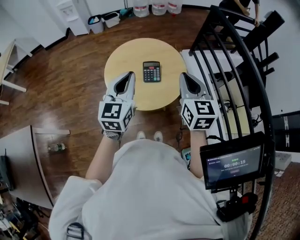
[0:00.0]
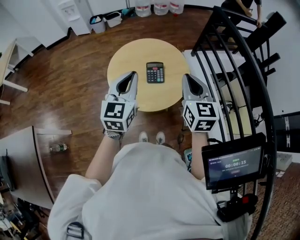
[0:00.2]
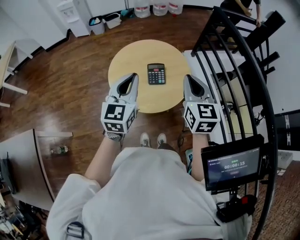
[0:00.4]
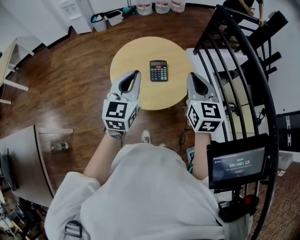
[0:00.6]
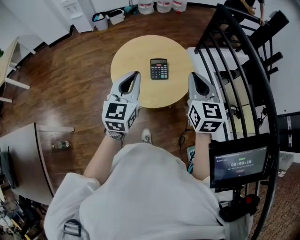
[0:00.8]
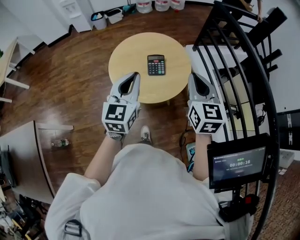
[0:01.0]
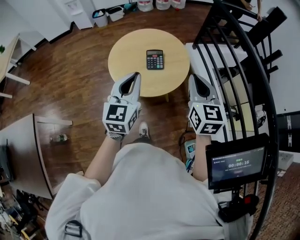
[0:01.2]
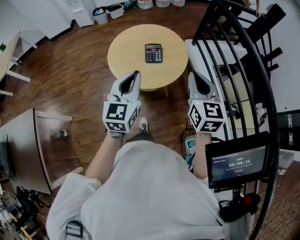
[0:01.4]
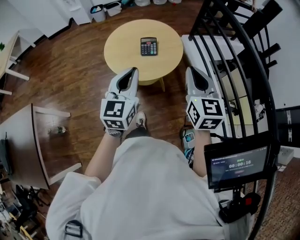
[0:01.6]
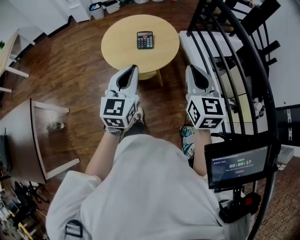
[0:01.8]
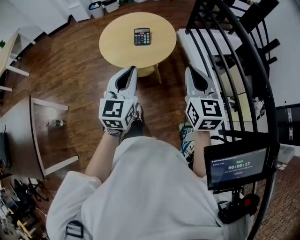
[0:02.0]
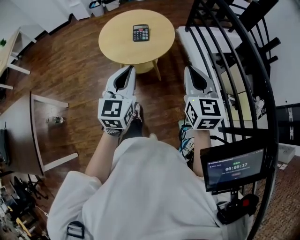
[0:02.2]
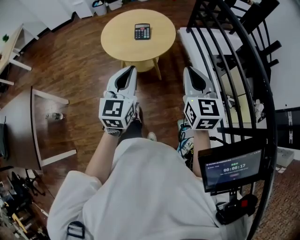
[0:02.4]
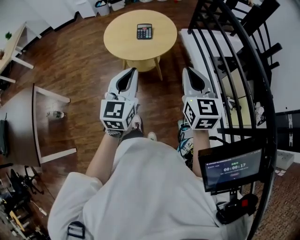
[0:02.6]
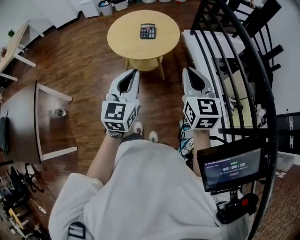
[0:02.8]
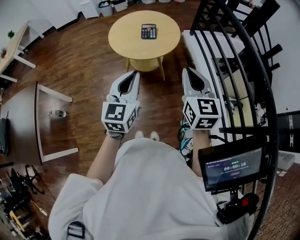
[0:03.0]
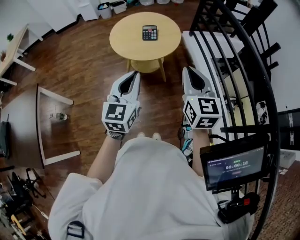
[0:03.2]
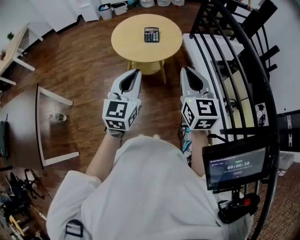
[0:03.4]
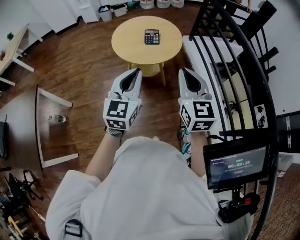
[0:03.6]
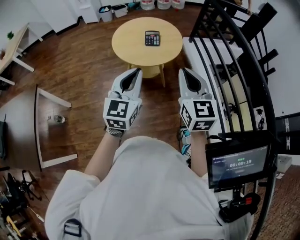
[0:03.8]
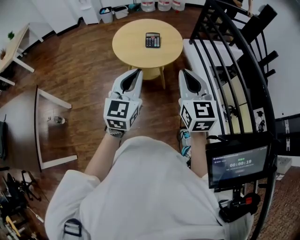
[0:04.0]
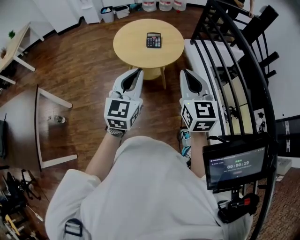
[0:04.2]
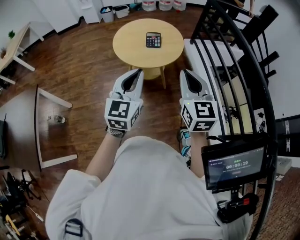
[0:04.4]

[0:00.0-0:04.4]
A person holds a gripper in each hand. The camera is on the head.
0:00.0 to 0:01.4: The grippers both shift backward and to the right by some 20 cm.
0:01.4 to 0:03.0: The left gripper shifts about 5 cm backward.
0:03.0 to 0:04.4: There are only small adjustments of the grippers.

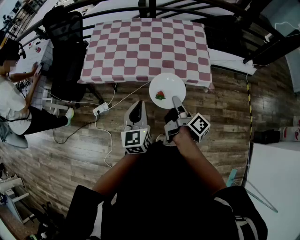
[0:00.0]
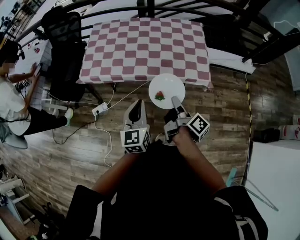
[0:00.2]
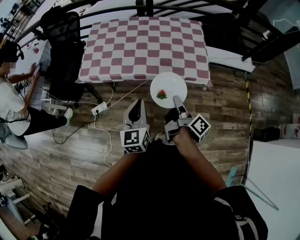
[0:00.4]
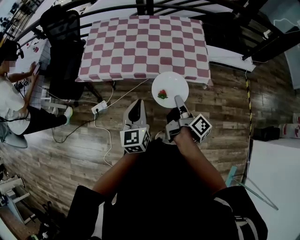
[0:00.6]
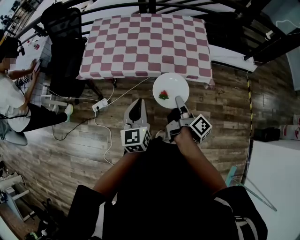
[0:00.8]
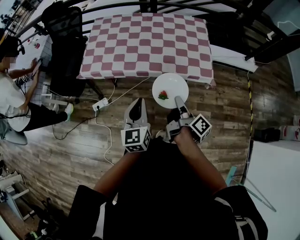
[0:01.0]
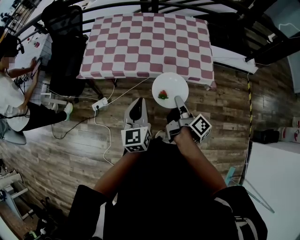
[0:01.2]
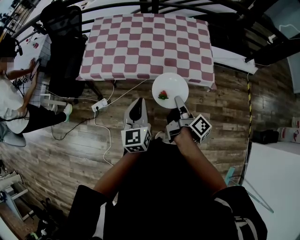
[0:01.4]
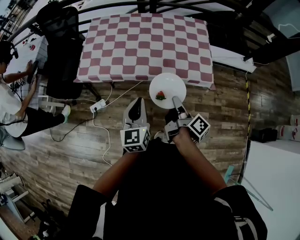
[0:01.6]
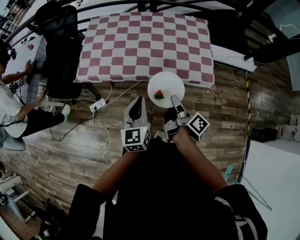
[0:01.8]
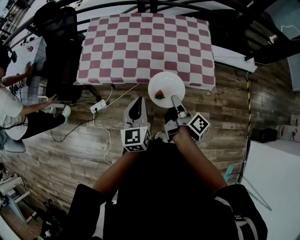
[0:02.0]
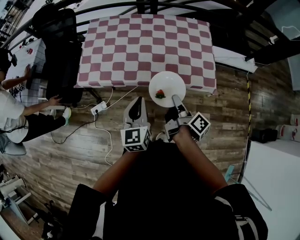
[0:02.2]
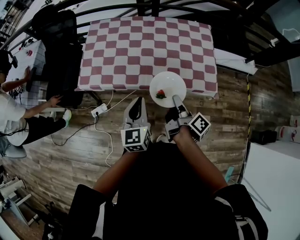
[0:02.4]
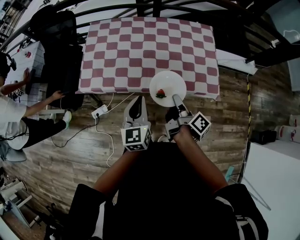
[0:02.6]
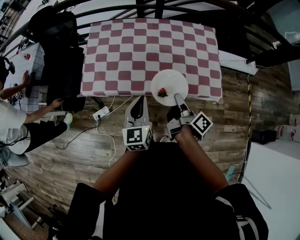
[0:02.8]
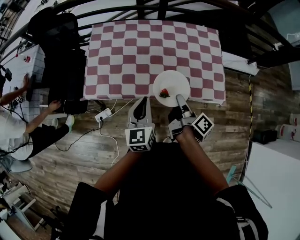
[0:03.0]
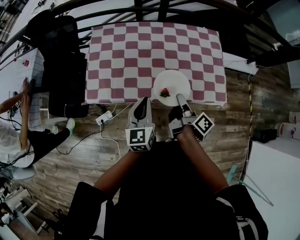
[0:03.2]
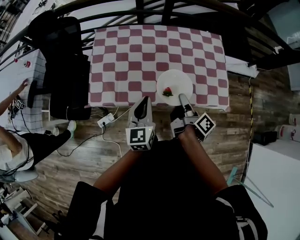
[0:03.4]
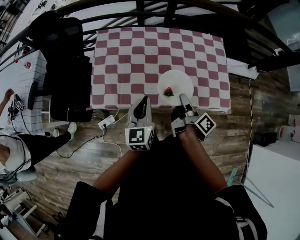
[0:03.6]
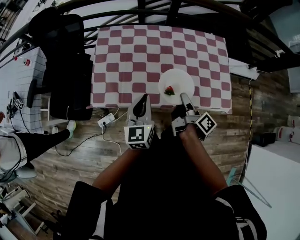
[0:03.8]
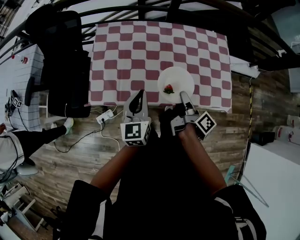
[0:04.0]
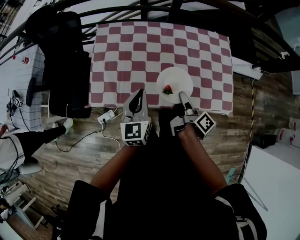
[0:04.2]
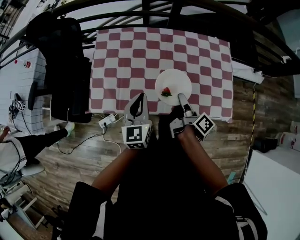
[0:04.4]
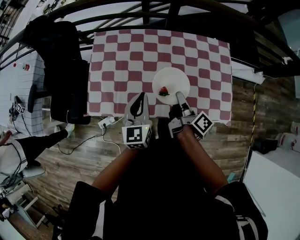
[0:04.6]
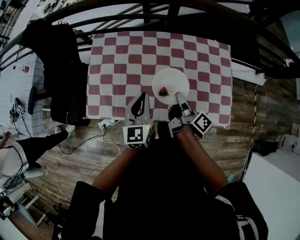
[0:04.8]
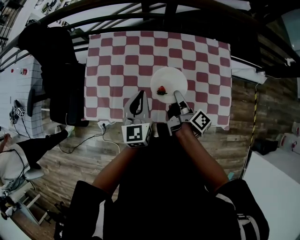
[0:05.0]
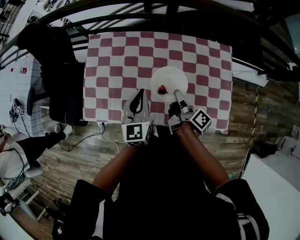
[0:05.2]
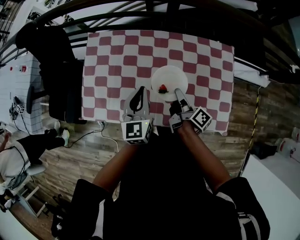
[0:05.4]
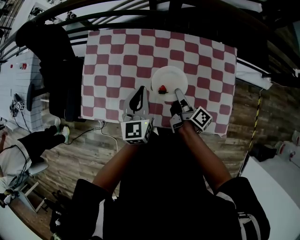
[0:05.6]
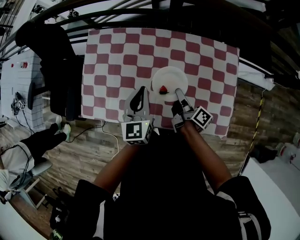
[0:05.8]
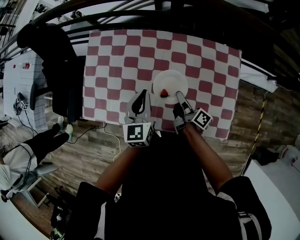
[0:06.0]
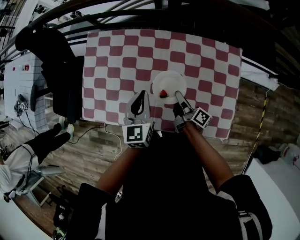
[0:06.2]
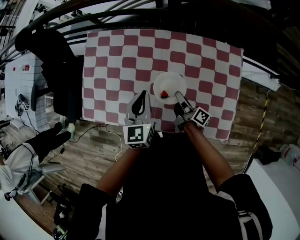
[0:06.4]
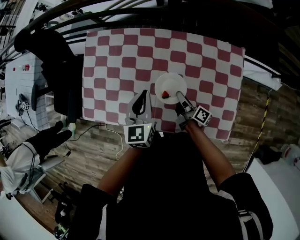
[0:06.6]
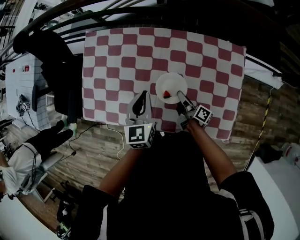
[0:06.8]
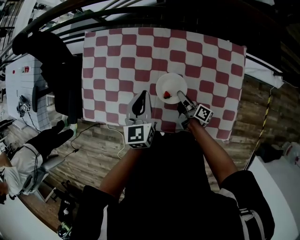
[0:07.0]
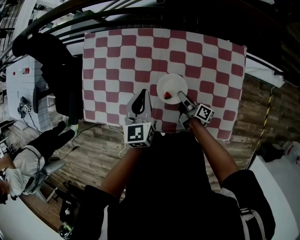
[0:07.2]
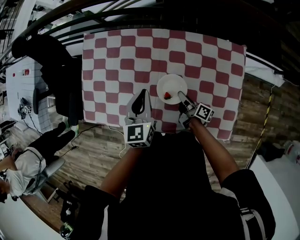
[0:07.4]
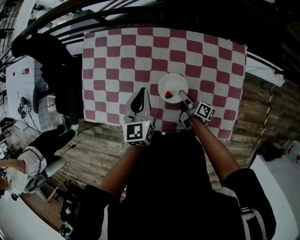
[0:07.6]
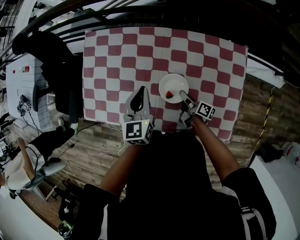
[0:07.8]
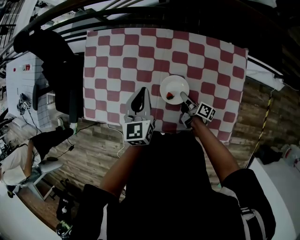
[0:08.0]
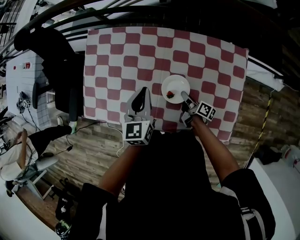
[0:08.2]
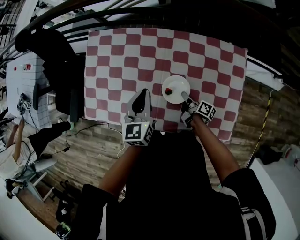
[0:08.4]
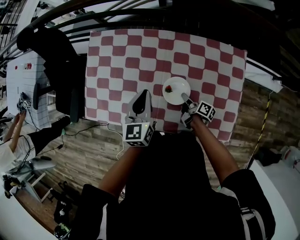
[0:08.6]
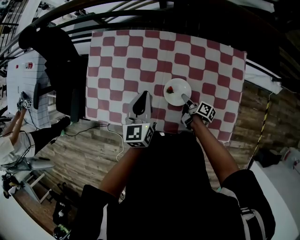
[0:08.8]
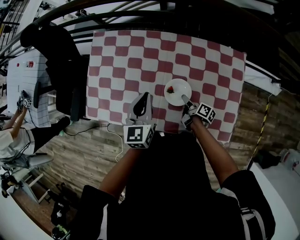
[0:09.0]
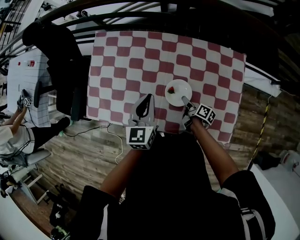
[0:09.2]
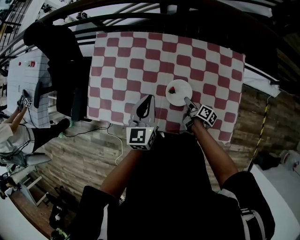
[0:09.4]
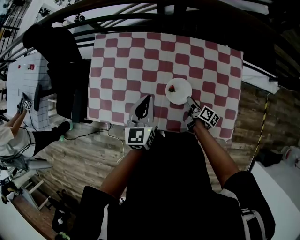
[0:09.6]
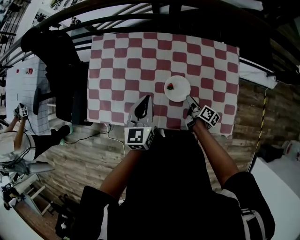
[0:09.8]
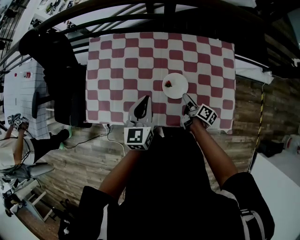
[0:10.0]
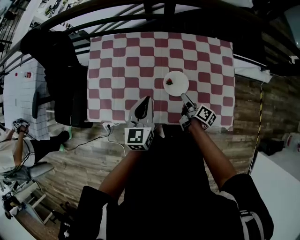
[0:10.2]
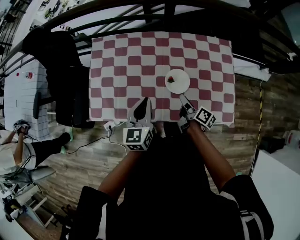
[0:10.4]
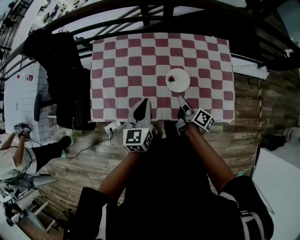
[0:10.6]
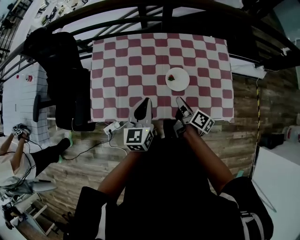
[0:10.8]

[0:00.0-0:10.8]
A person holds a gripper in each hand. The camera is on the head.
0:01.6 to 0:03.0: The left gripper moves roughly 20 cm.
0:03.0 to 0:04.6: The left gripper ends up roughly 15 cm from where it was.
0:04.6 to 0:06.2: The left gripper changes place by about 15 cm.
0:07.8 to 0:09.2: The left gripper ends up about 5 cm from where it was.
0:09.2 to 0:10.8: The left gripper moves about 15 cm.

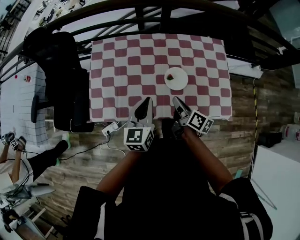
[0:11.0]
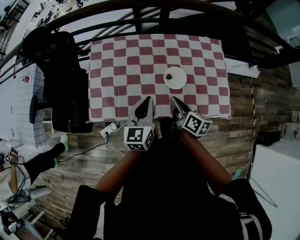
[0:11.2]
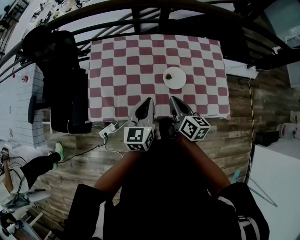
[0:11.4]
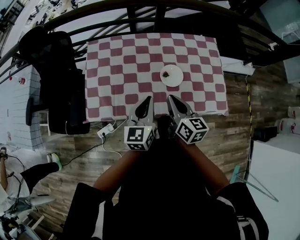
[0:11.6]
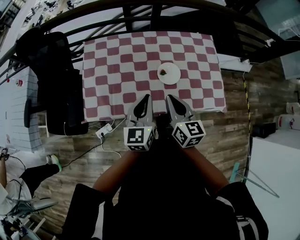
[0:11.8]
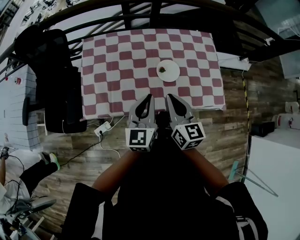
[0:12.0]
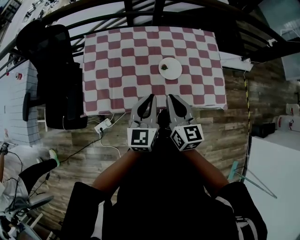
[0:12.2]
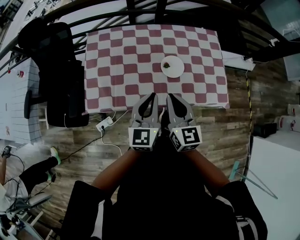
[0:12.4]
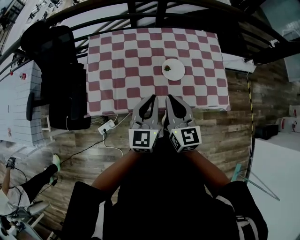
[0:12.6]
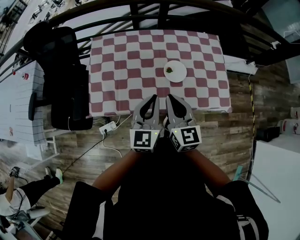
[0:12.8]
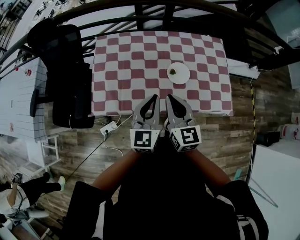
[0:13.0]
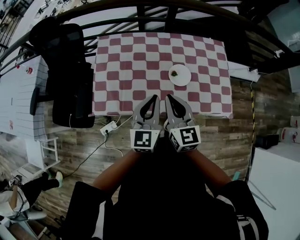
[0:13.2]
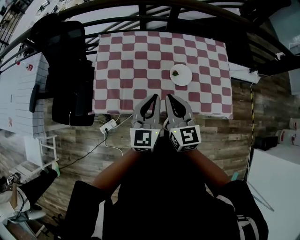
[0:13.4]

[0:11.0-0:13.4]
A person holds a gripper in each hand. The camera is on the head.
0:11.0 to 0:12.2: The left gripper moves roughly 5 cm.

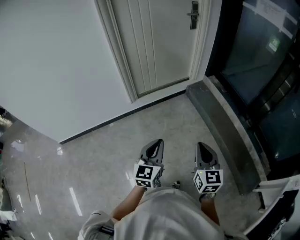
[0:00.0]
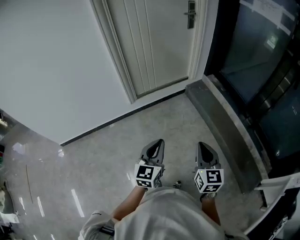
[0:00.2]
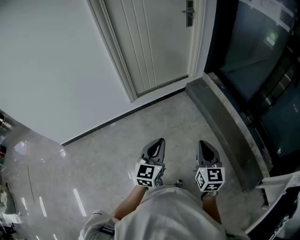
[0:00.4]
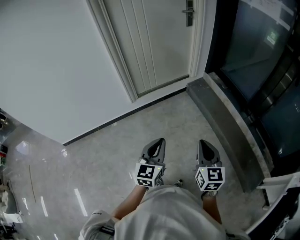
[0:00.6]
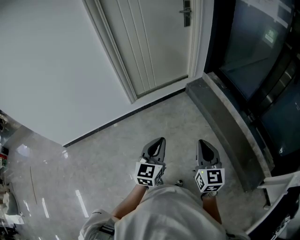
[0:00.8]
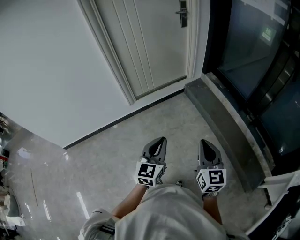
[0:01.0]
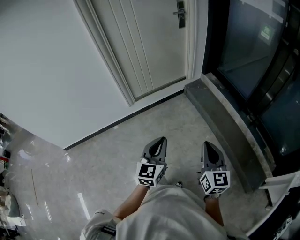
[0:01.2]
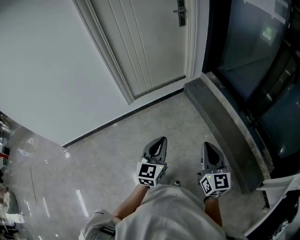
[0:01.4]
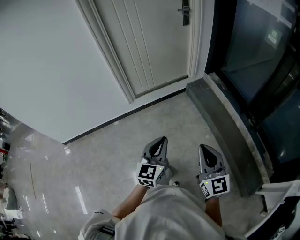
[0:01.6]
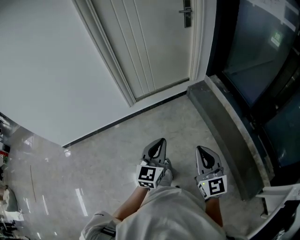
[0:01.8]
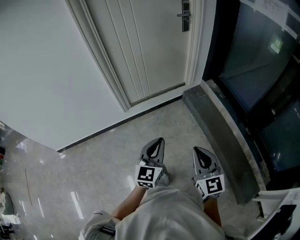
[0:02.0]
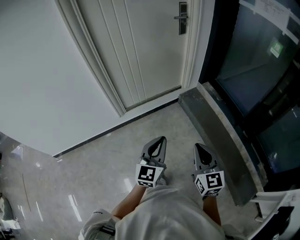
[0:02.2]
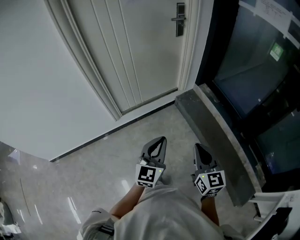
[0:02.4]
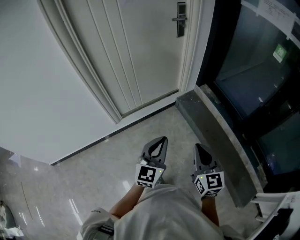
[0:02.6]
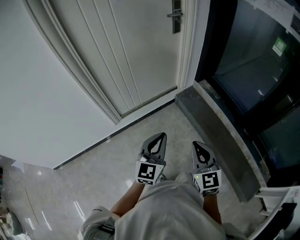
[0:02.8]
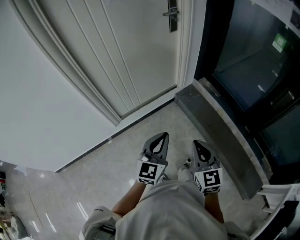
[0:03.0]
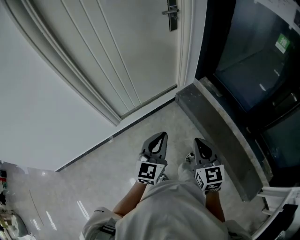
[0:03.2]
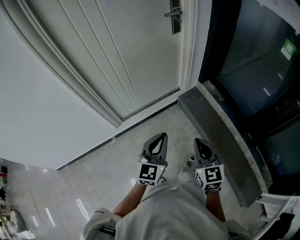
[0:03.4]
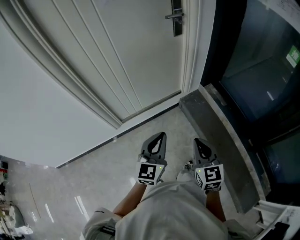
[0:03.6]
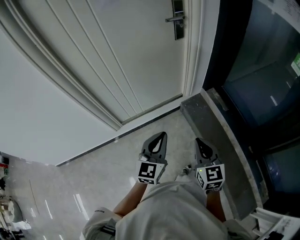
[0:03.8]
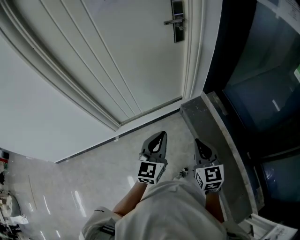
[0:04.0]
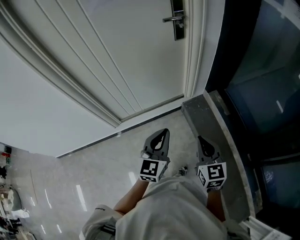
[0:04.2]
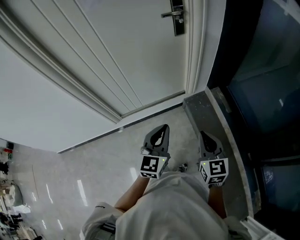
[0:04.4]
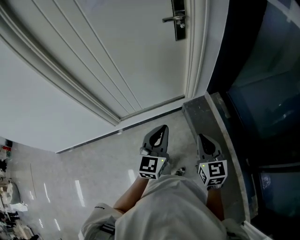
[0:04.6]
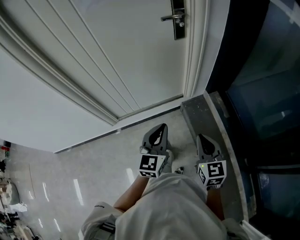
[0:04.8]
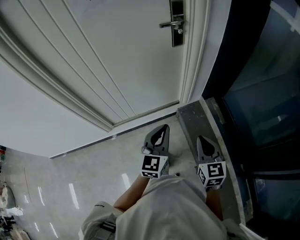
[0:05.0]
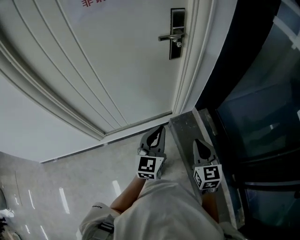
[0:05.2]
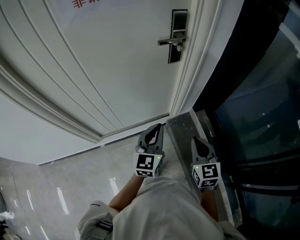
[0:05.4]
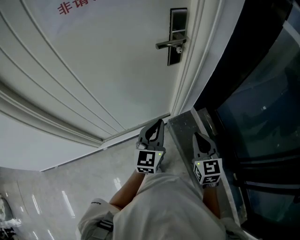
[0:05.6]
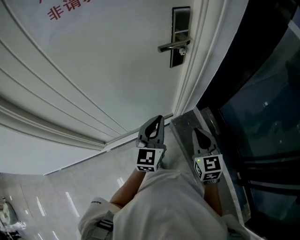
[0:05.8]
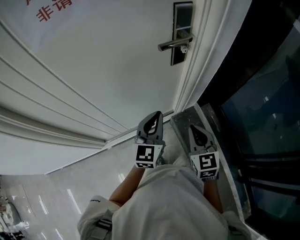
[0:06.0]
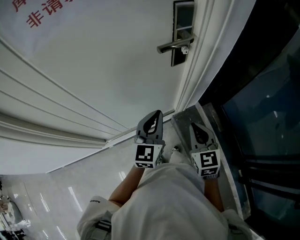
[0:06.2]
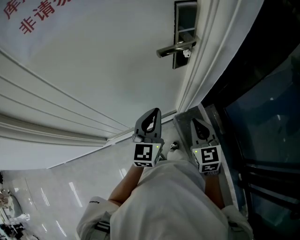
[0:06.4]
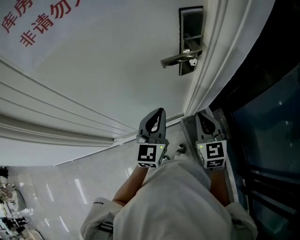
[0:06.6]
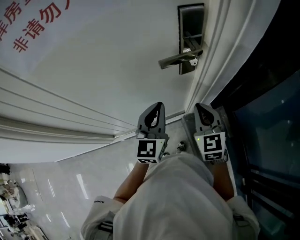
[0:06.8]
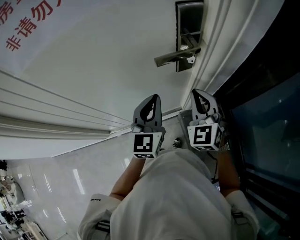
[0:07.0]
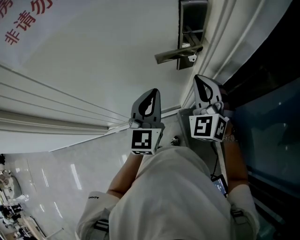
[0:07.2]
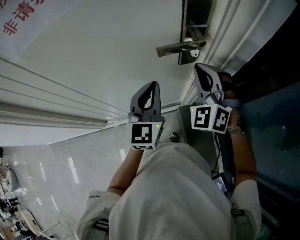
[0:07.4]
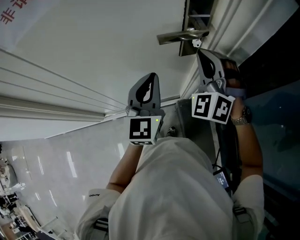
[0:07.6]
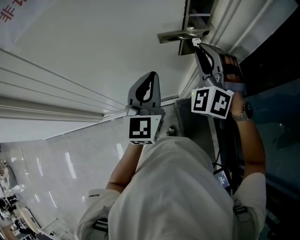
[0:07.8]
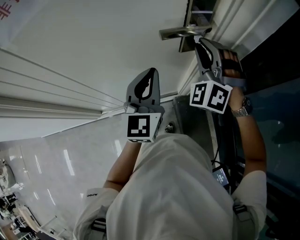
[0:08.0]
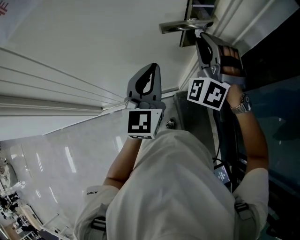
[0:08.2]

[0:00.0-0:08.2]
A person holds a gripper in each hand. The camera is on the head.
0:00.0 to 0:01.6: Both grippers travel together to the right, approximately 10 cm.
0:01.6 to 0:03.2: Both grippers move forward, approximately 35 cm.
0:03.2 to 0:05.0: Both grippers move forward and to the right, approximately 30 cm.
0:05.0 to 0:06.6: The two grippers go roughly 35 cm forward.
0:06.6 to 0:08.2: The left gripper shifts by roughly 5 cm. The right gripper travels forward and upward by roughly 15 cm, and twists some 70 degrees counterclockwise, seen from behind.
